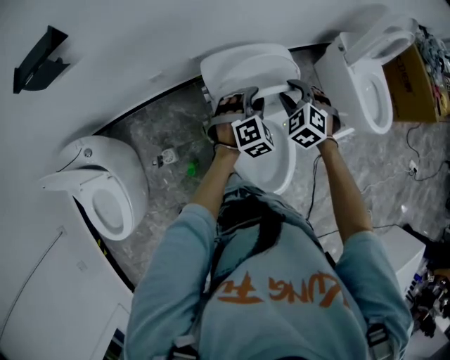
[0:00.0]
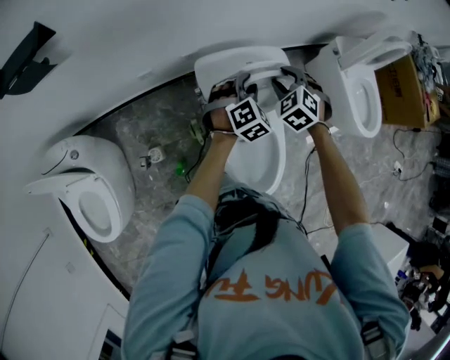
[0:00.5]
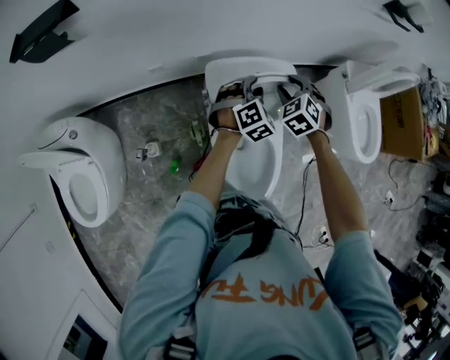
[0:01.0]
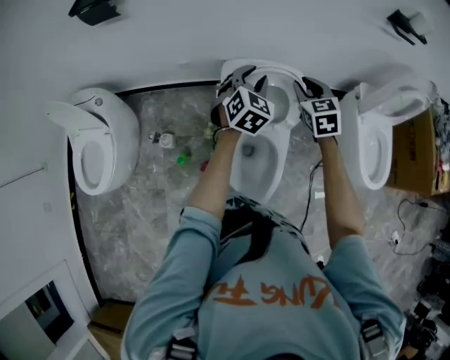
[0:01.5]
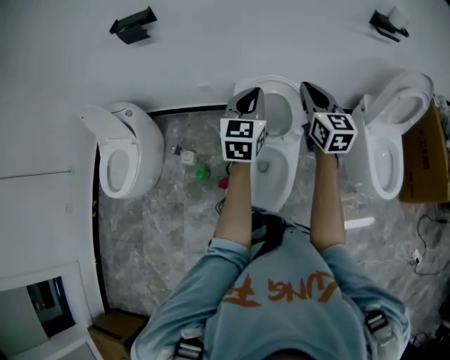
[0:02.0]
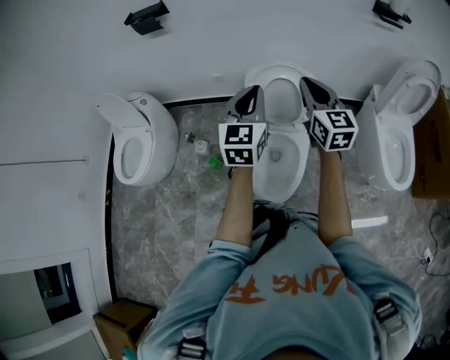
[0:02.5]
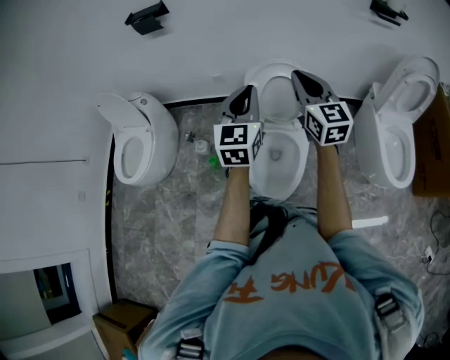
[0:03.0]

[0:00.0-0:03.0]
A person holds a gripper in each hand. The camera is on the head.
0:00.0 to 0:01.5: Both grippers travel together upward, some 10 cm. The right gripper changes its angle by roughly 30 degrees. The left gripper turns by some 40 degrees.
0:01.5 to 0:03.0: The grippers both shift backward and upward by about 25 cm. The left gripper changes its angle by approximately 30 degrees, and closes its fingers, while the right gripper points its fingers approximately 30 degrees further upward.

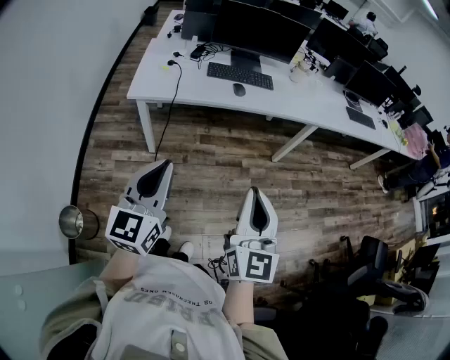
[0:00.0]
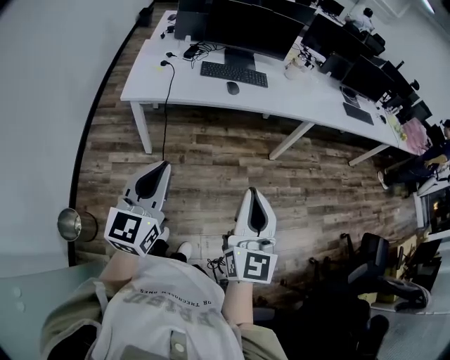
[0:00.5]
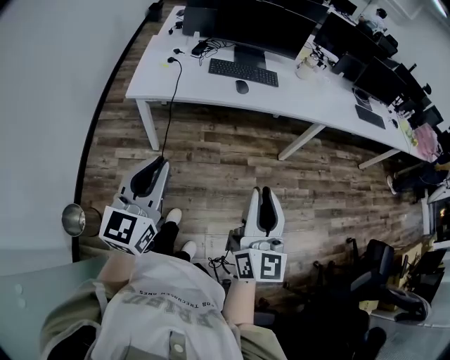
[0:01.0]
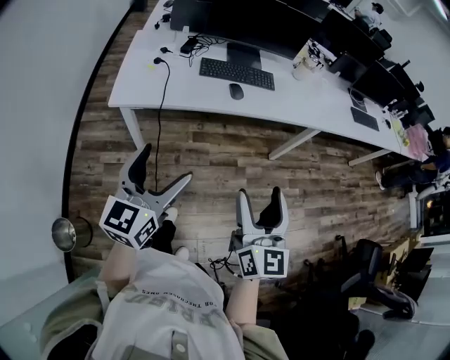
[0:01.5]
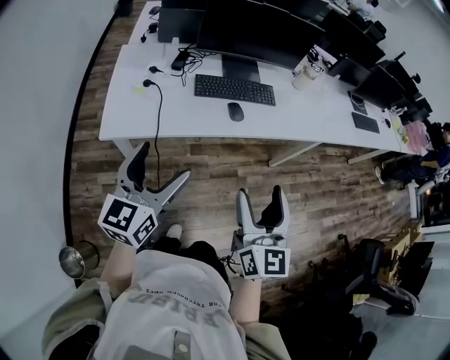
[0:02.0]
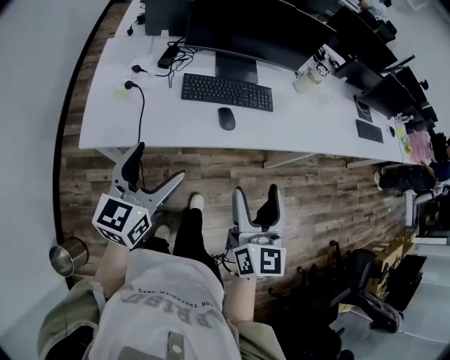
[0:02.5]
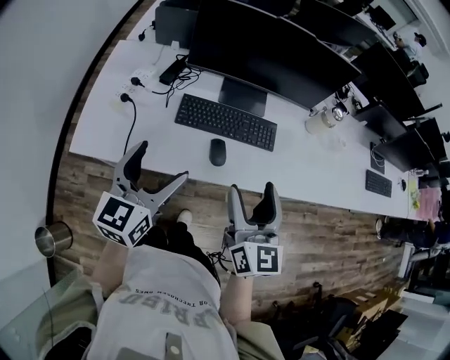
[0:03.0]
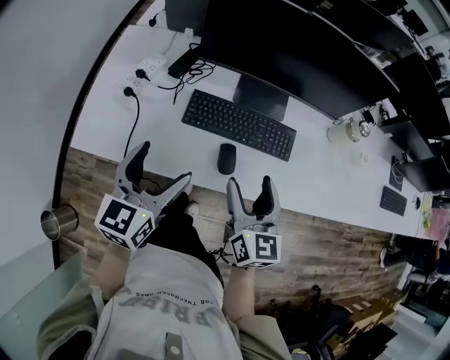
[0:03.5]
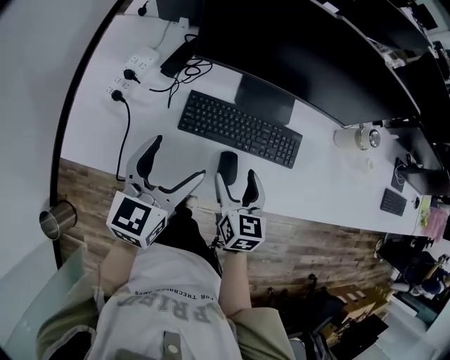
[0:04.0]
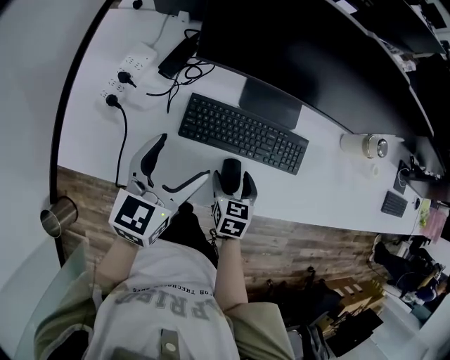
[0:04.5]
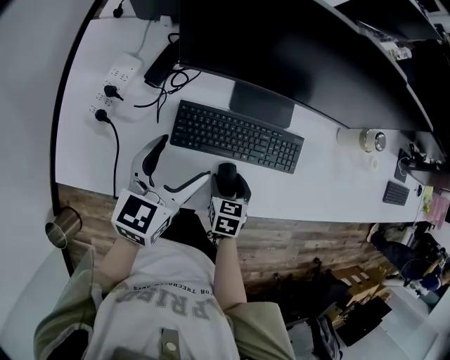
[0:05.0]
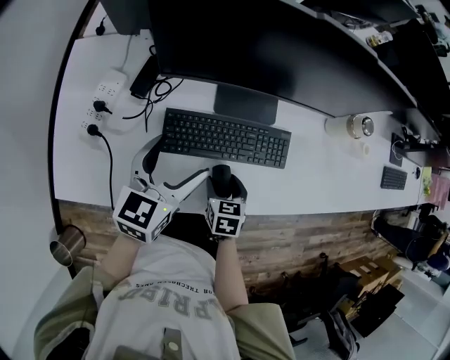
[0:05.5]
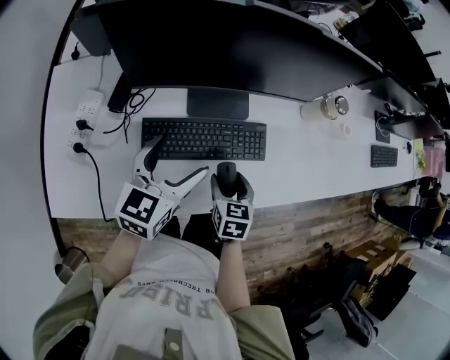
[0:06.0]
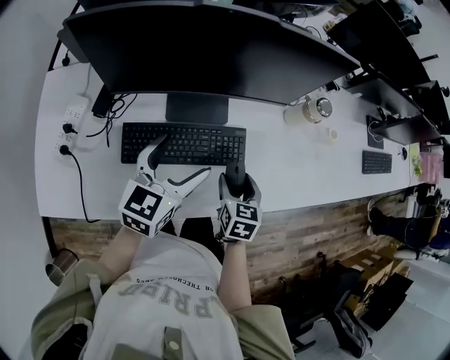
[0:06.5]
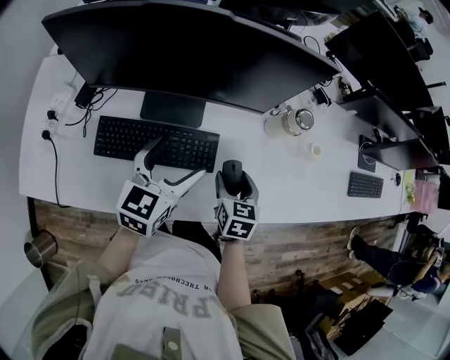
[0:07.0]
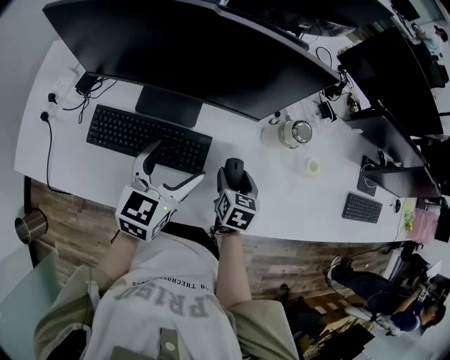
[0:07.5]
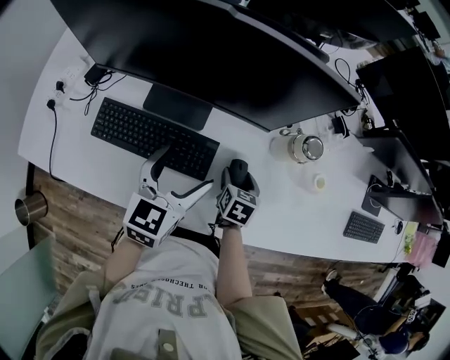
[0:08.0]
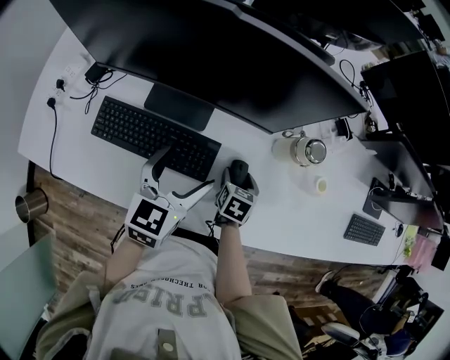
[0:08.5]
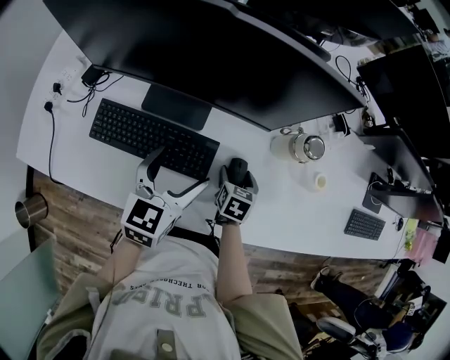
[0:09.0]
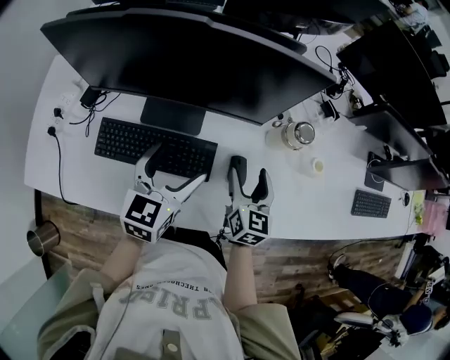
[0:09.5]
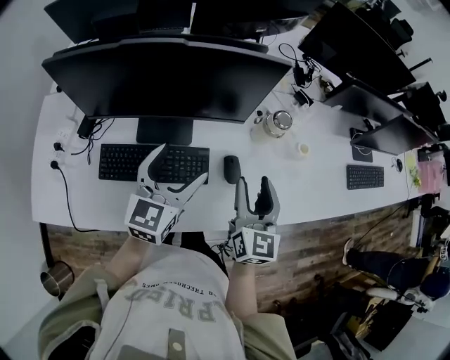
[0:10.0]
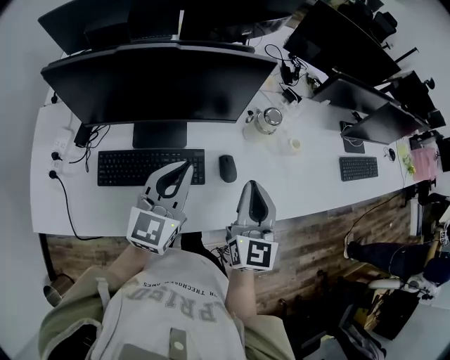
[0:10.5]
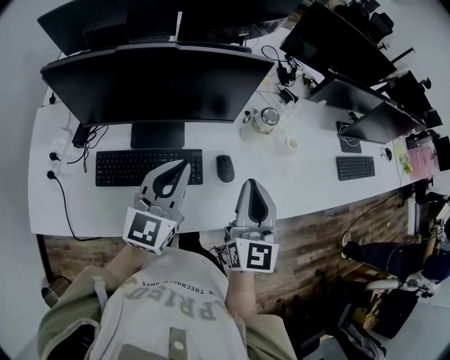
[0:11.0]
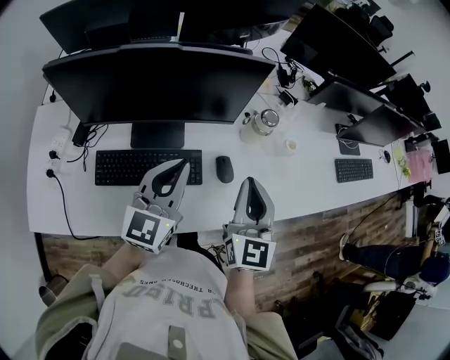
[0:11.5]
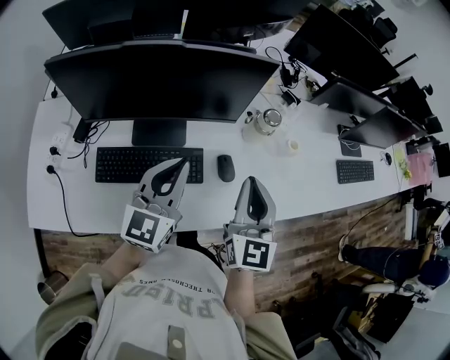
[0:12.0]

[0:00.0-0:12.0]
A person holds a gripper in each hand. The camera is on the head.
0:00.0 to 0:02.0: The grippers both shift forward by approximately 30 cm. The left gripper opens its fingers, while the right gripper opens up.
0:02.0 to 0:04.0: The left gripper is displaced forward by about 35 cm, and changes its angle by approximately 20 degrees. Meanwhile the right gripper travels forward and downward by approximately 50 cm, and rotates some 40 degrees.
0:04.0 to 0:06.0: The right gripper moves to the right and downward, approximately 10 cm, and turns by some 20 degrees. Meanwhile the left gripper goes some 15 cm forward and to the right.
0:06.0 to 0:08.0: The left gripper goes some 20 cm to the right, while the right gripper heads to the right and forward, covering roughly 30 cm.
0:08.0 to 0:10.0: The left gripper travels upward by approximately 10 cm; the right gripper heads upward, covering roughly 25 cm, and angles its fingers upward, by about 40 degrees.
0:10.0 to 0:12.0: The left gripper ends up some 5 cm from where it was, and closes up. Meanwhile the right gripper is displaced upward by about 5 cm, and closes.

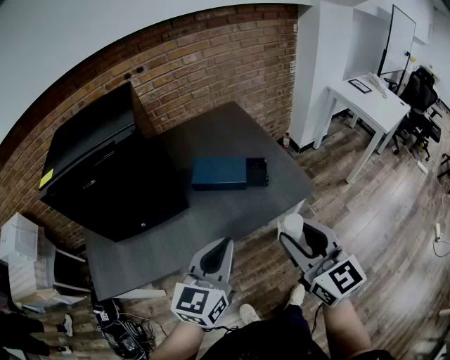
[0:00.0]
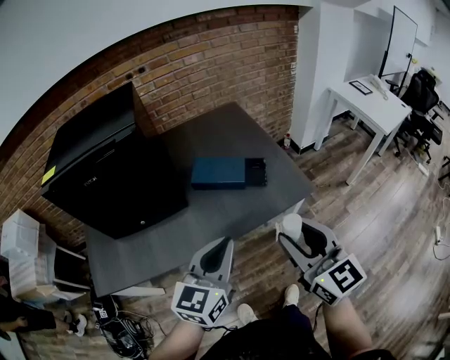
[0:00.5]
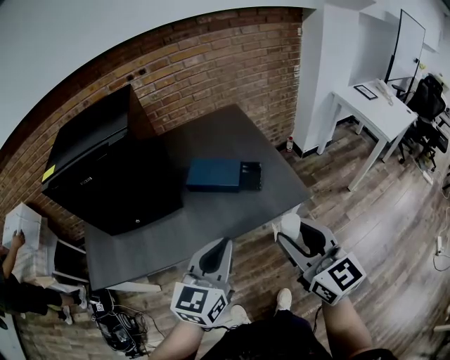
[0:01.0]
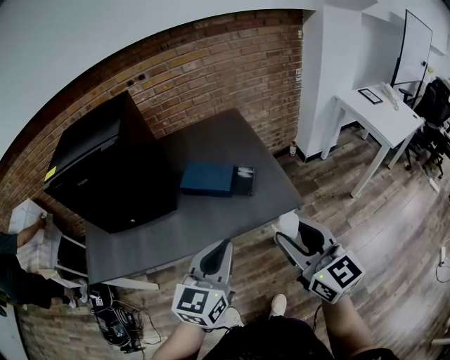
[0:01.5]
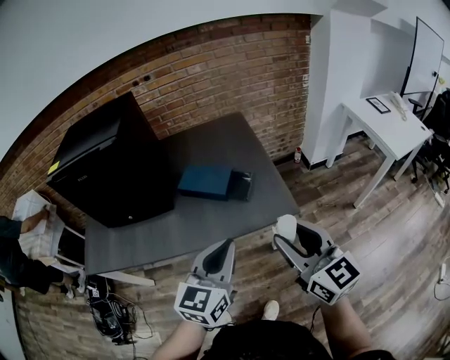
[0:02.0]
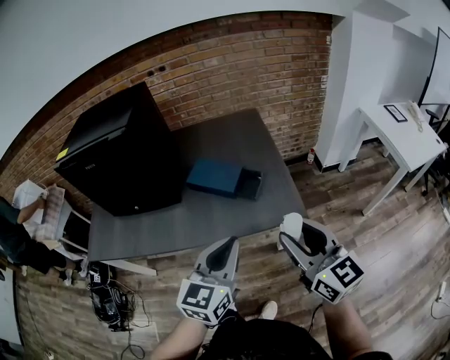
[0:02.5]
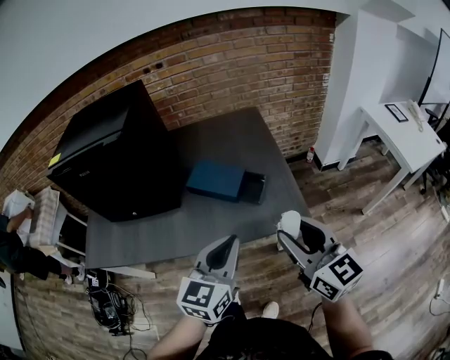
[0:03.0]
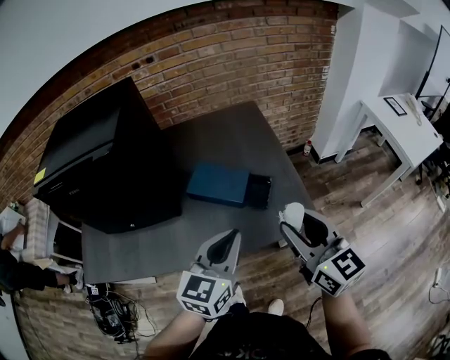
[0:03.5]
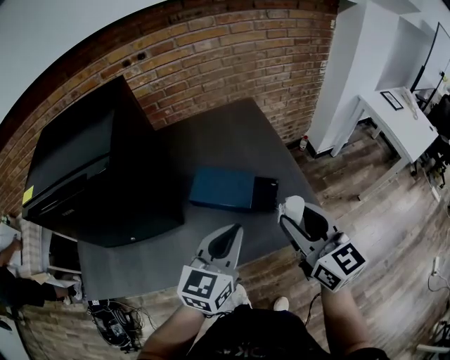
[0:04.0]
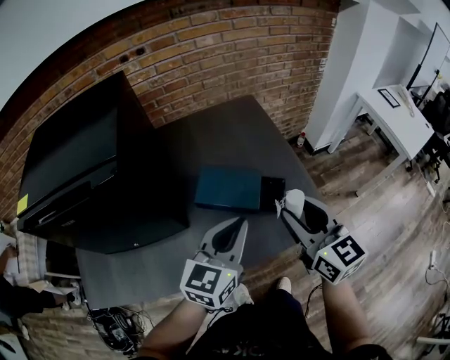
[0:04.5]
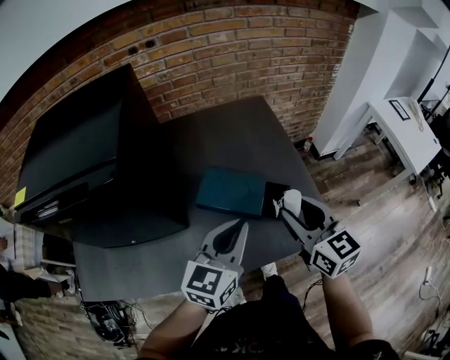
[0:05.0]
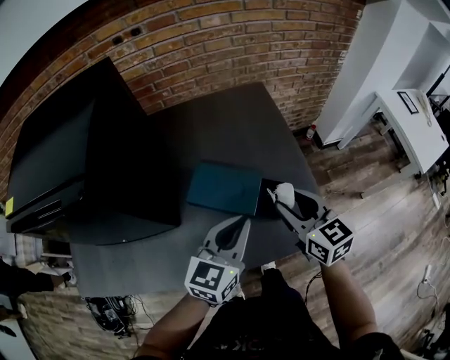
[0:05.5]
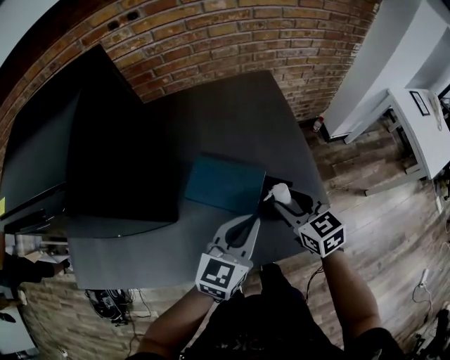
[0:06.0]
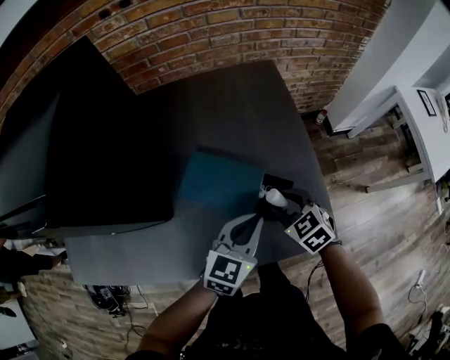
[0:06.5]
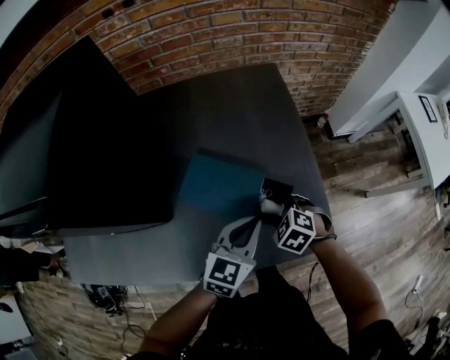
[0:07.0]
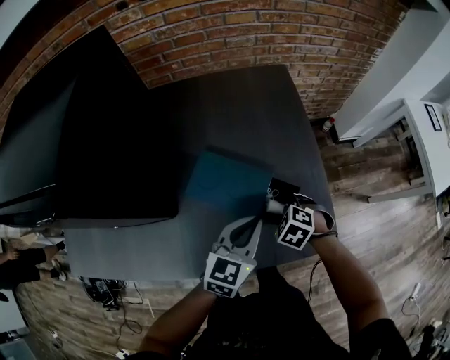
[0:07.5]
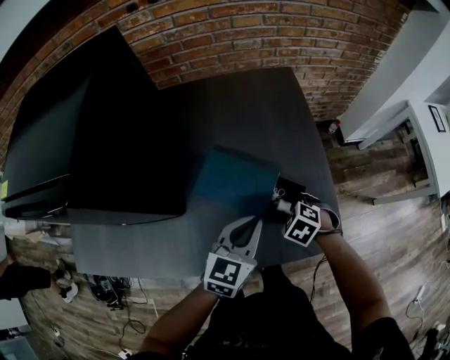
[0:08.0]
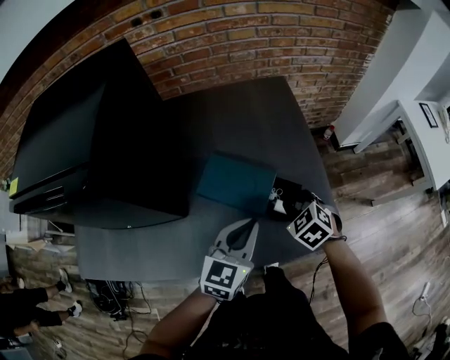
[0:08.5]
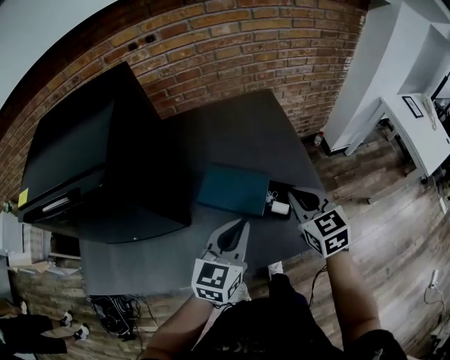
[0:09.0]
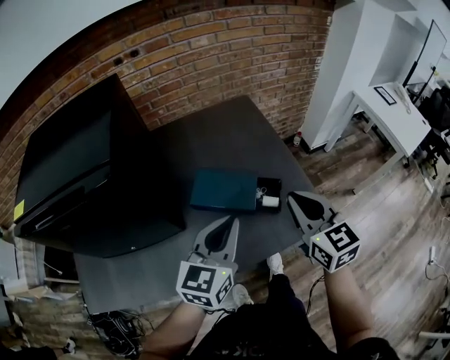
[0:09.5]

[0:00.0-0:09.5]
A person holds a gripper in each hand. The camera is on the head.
0:00.0 to 0:02.0: Both grippers move to the right, about 15 cm.
0:02.0 to 0:04.0: Both grippers move forward and to the left, some 20 cm.
0:04.0 to 0:05.5: The right gripper goes approximately 15 cm forward and downward. The left gripper shifts about 10 cm forward and downward.
0:05.5 to 0:07.5: The left gripper moves downward, some 10 cm; the right gripper moves downward, approximately 20 cm, and angles its fingers downward, by about 50 degrees.
0:07.5 to 0:09.5: The right gripper travels upward by about 30 cm, tips its fingers upward by some 60 degrees, and closes up. Meanwhile the left gripper travels upward, to the left and backward by some 20 cm.

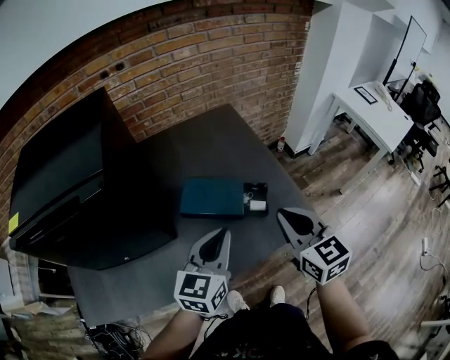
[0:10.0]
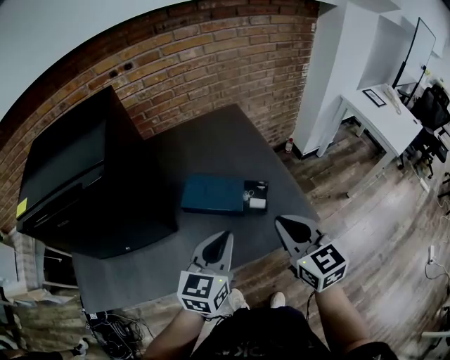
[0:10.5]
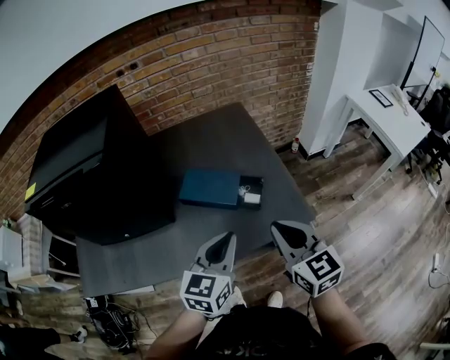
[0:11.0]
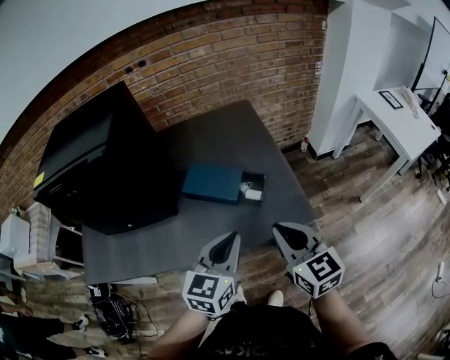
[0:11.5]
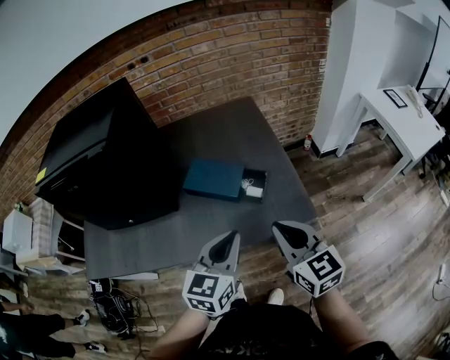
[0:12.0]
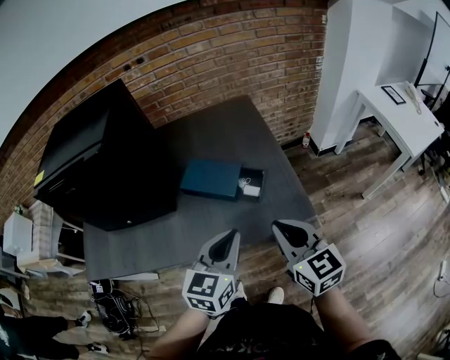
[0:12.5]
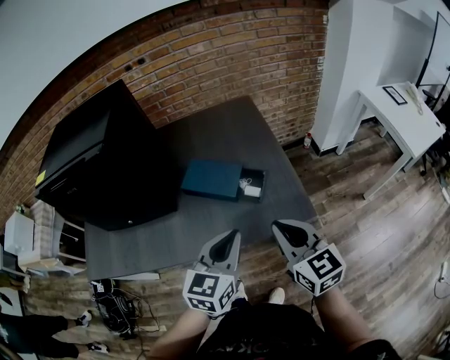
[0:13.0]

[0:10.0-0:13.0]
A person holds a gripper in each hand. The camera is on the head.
0:10.0 to 0:11.5: The left gripper is displaced to the right and backward by about 15 cm; the right gripper is displaced backward and to the right by some 10 cm.
0:11.5 to 0:13.0: The two grippers keep their place.
